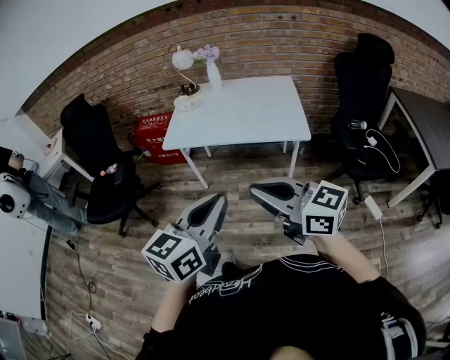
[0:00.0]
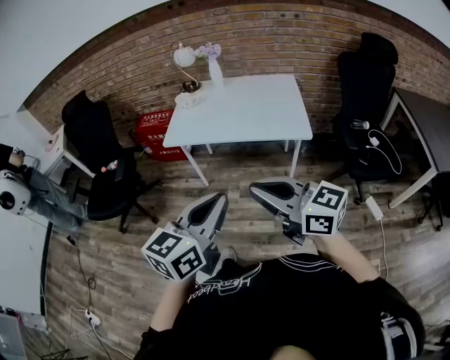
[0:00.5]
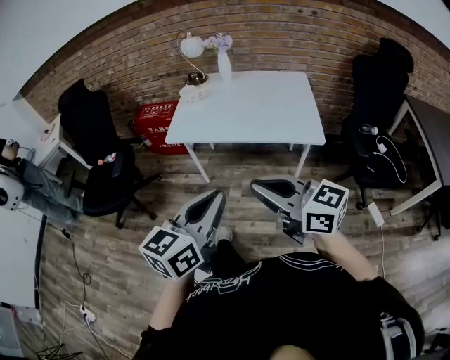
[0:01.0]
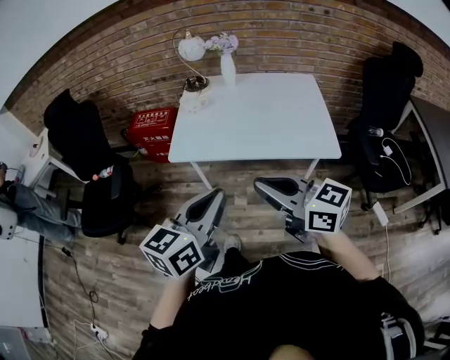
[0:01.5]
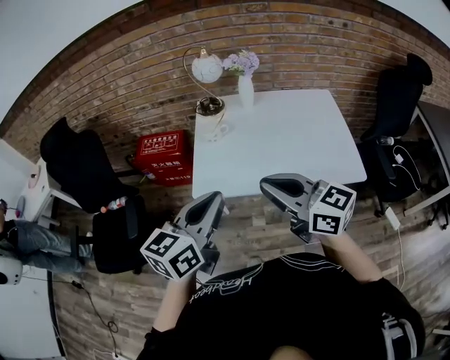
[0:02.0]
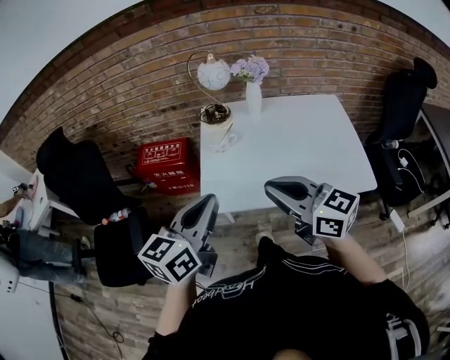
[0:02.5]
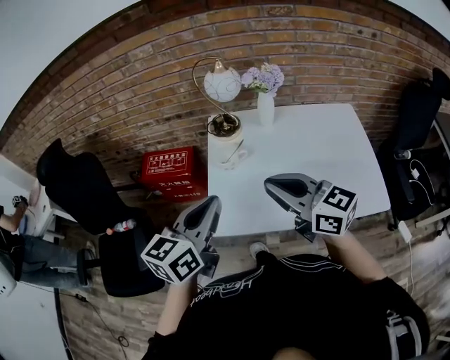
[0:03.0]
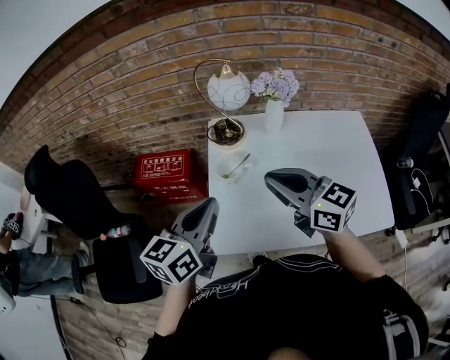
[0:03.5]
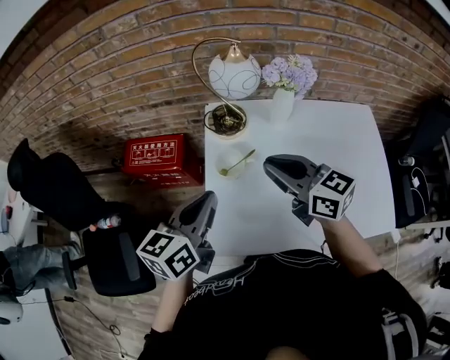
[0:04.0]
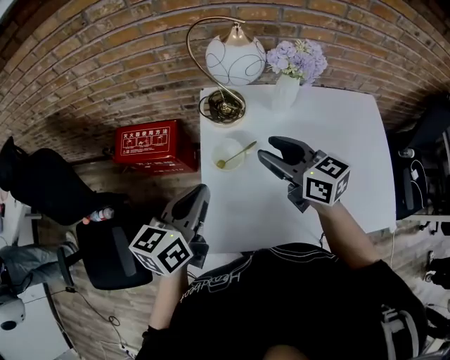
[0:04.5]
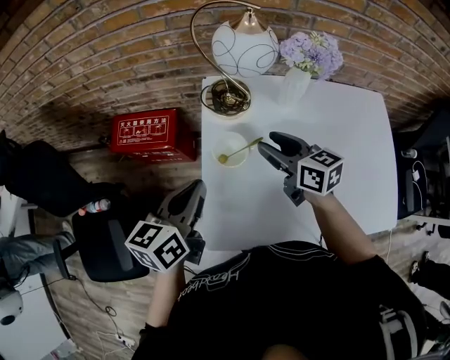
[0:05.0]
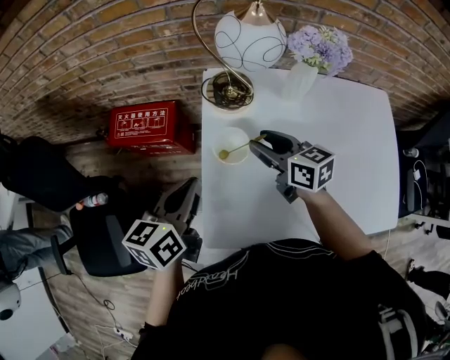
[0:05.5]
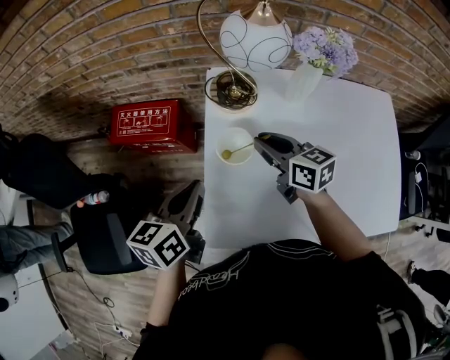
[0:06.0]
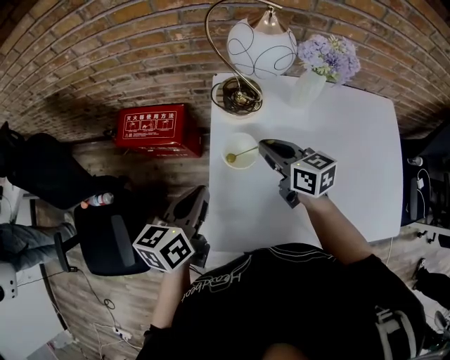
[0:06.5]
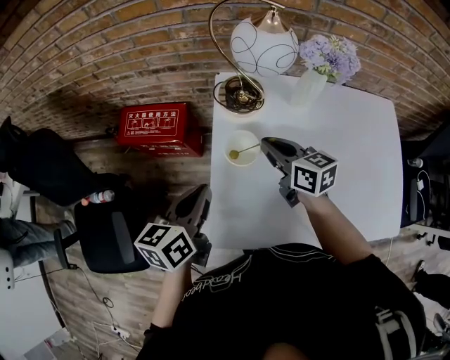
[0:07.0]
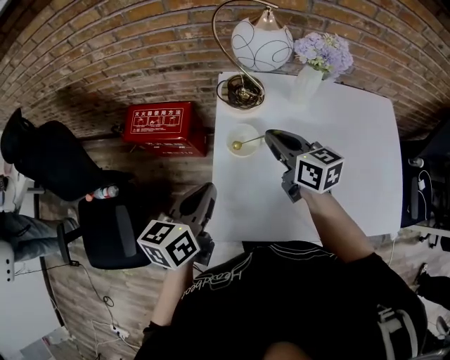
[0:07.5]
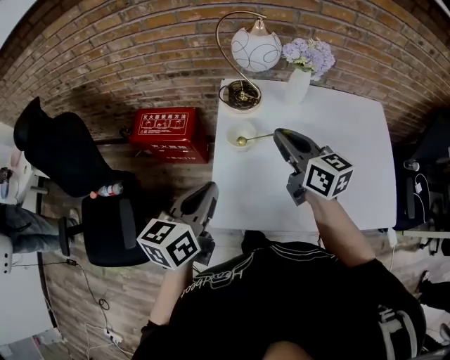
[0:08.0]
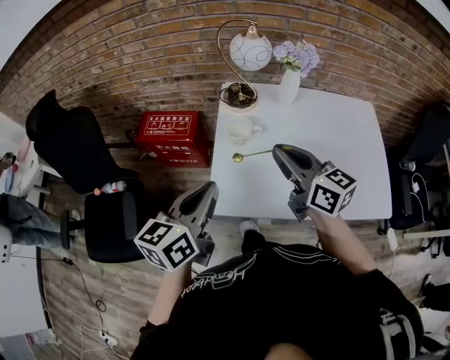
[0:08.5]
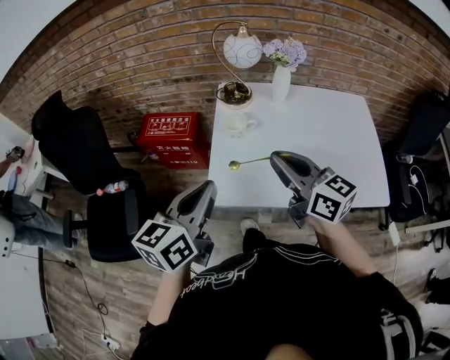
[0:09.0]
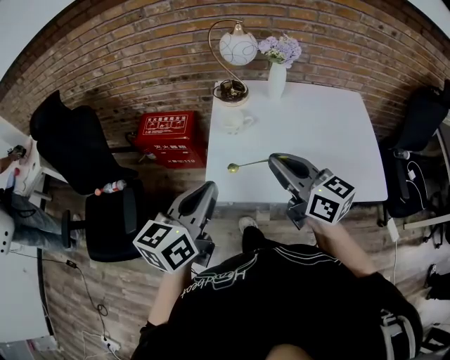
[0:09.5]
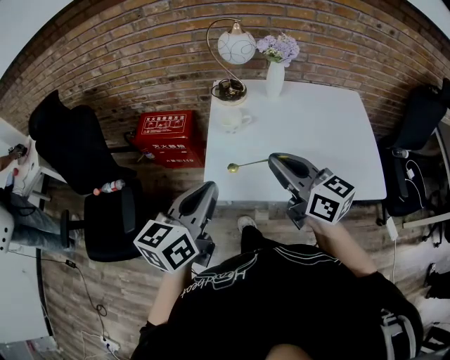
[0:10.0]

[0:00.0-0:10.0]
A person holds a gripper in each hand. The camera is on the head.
0:00.0 to 0:02.0: The two grippers travel together, forward, some 40 cm.
0:02.0 to 0:04.0: Both grippers move forward, roughly 35 cm.
0:04.0 to 0:06.0: The right gripper moves downward and forward, roughly 20 cm, and opens, then closes once more. Meanwhile the left gripper travels downward by roughly 10 cm.
0:06.0 to 0:08.0: The right gripper moves upward and backward, some 15 cm; the left gripper heads backward and upward, covering roughly 15 cm.
0:08.0 to 0:10.0: The left gripper goes some 15 cm backward and upward; the right gripper travels backward by roughly 20 cm.

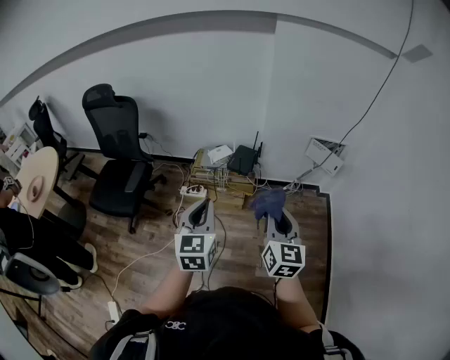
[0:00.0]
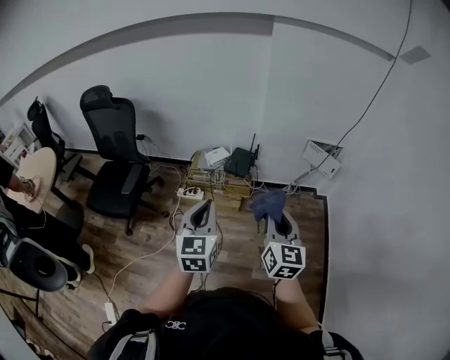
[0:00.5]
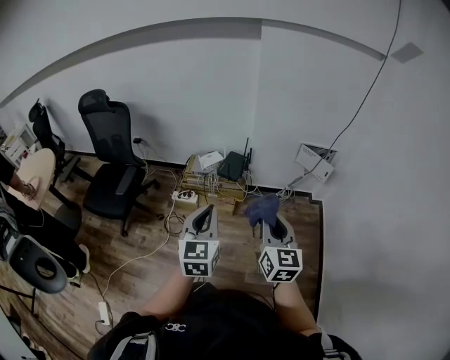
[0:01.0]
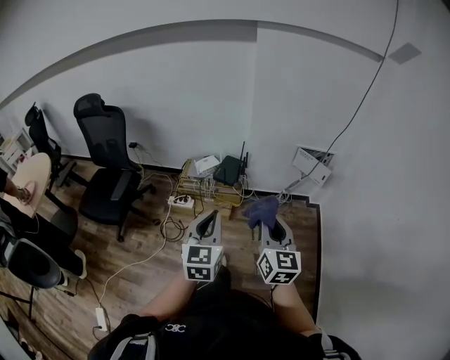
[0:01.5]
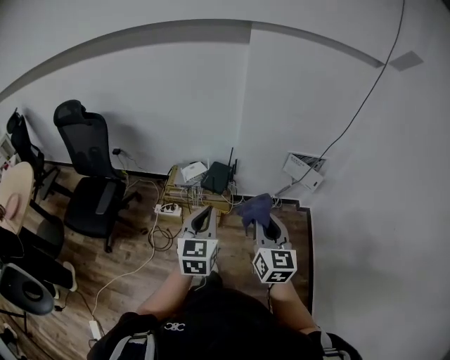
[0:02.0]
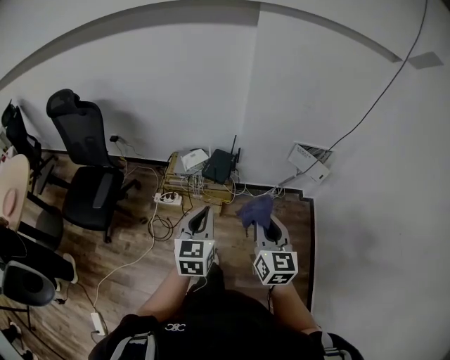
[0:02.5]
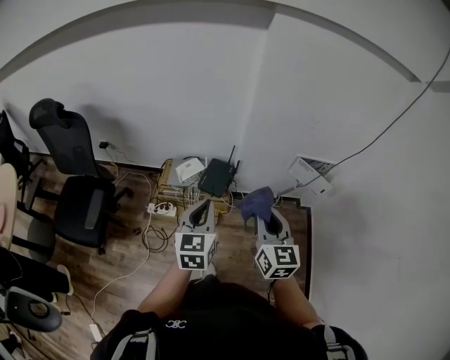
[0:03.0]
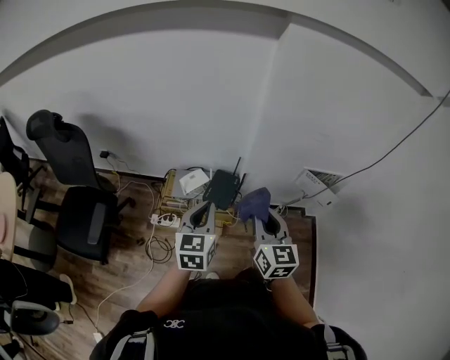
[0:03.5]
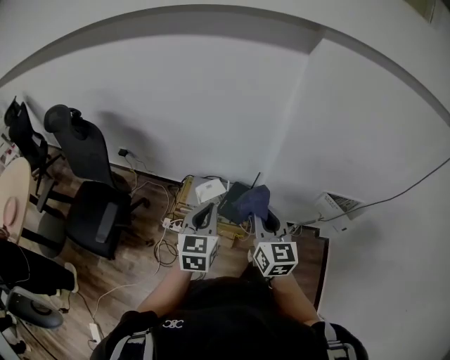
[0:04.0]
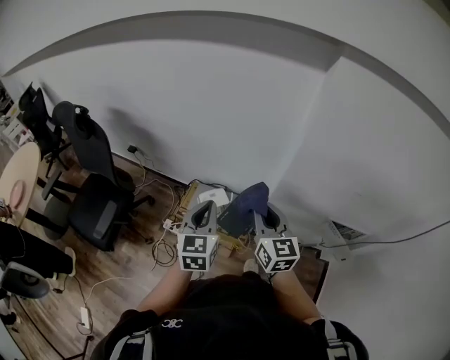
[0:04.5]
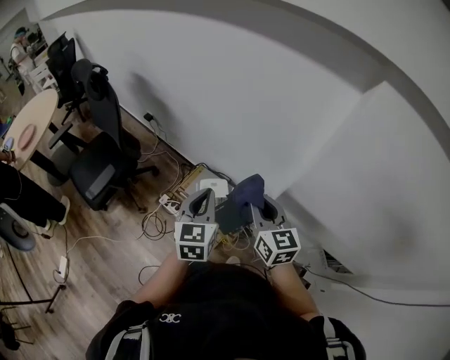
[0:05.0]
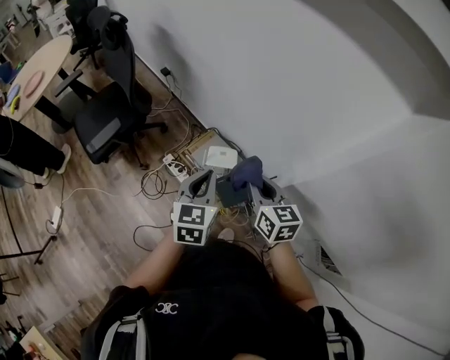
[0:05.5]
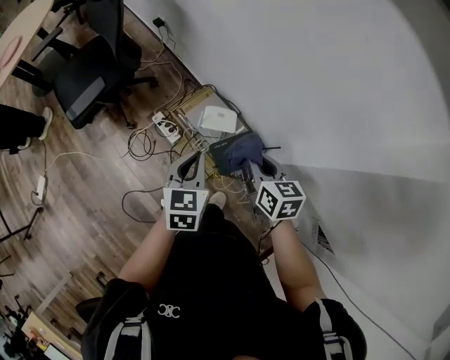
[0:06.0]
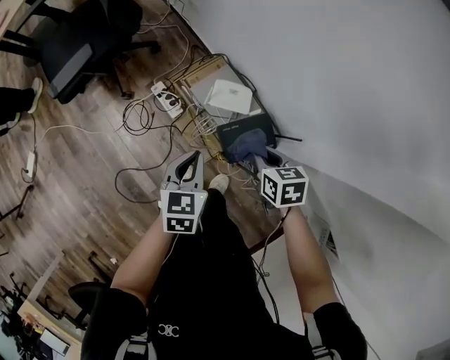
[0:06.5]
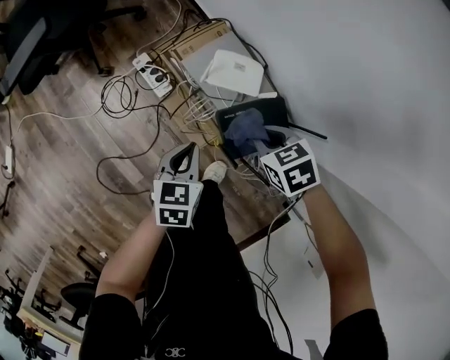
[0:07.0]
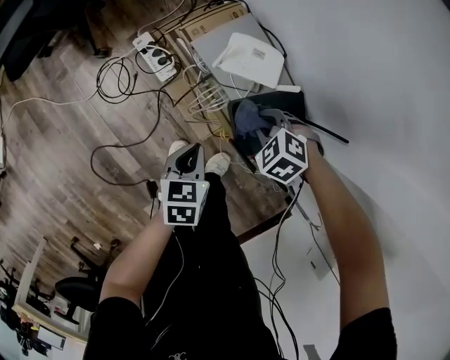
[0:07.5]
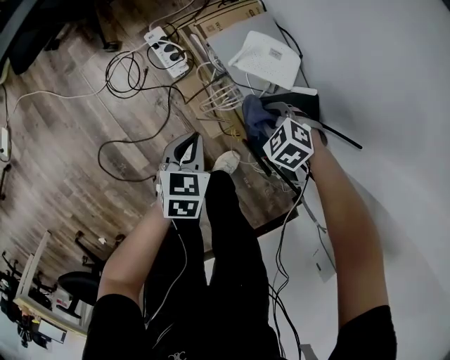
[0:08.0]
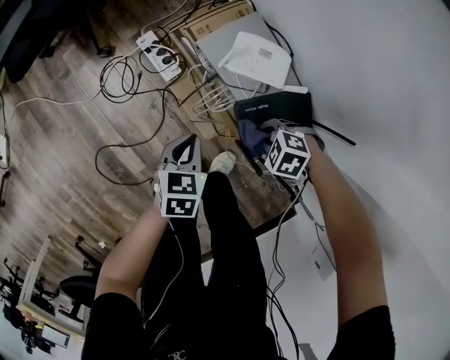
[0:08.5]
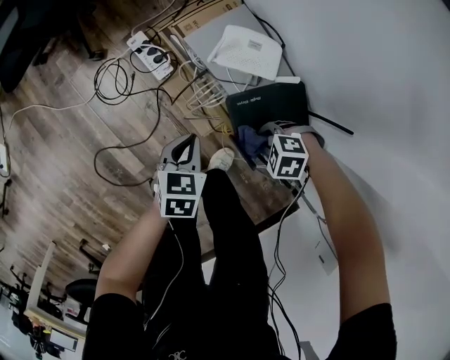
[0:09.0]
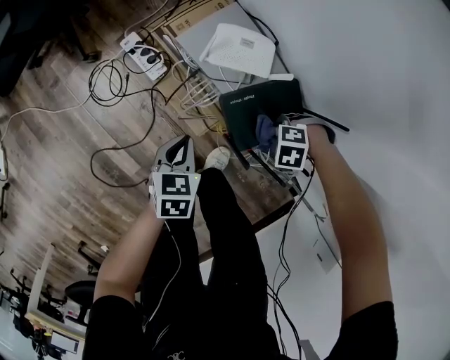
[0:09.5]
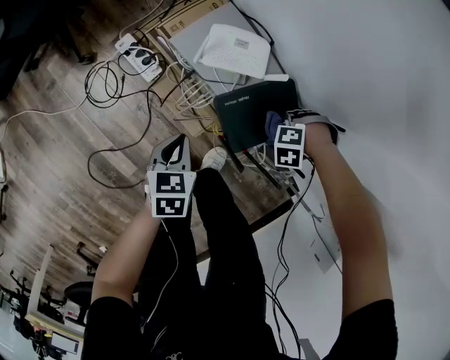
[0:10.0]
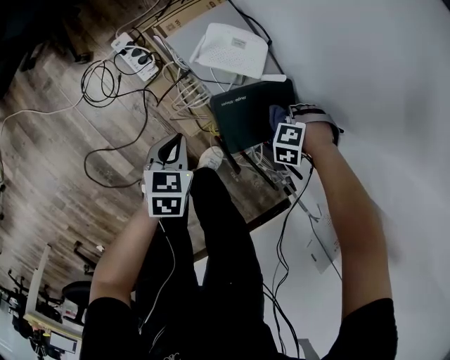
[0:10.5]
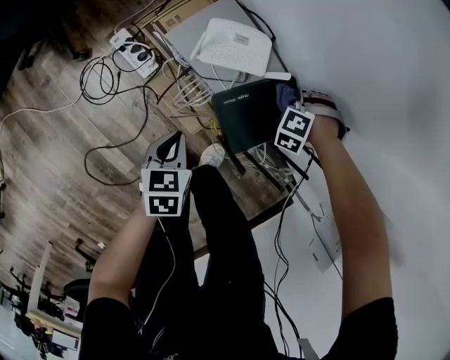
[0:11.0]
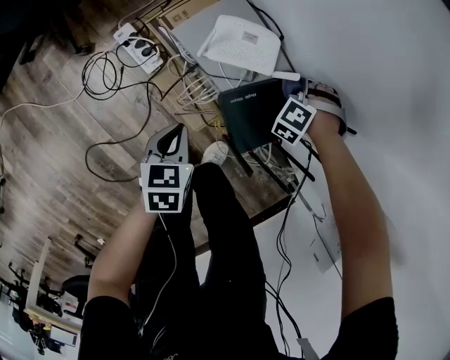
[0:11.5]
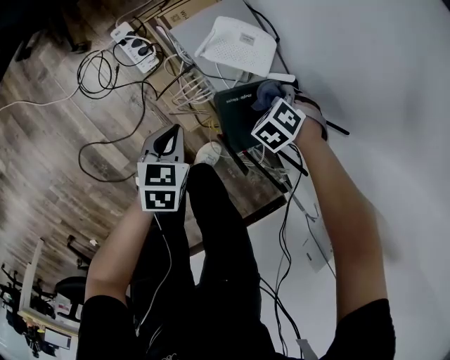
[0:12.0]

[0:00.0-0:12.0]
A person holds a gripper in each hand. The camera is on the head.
0:00.0 to 0:02.0: The left gripper moves to the right and forward, about 15 cm. Meanwhile the right gripper heads forward and to the right, covering some 10 cm.
0:02.0 to 0:04.0: The two grippers go approximately 35 cm forward.
0:04.0 to 0:06.0: The left gripper travels downward by roughly 15 cm, and rotates approximately 40 degrees, while the right gripper moves some 25 cm, and rotates about 50 degrees.
0:06.0 to 0:08.0: The grippers both shift downward by some 40 cm. The left gripper swivels approximately 20 degrees, while the right gripper points its fingers some 40 degrees further downward.
0:08.0 to 0:10.0: The right gripper changes place by some 20 cm, and changes its angle by about 40 degrees.
0:10.0 to 0:12.0: The right gripper shifts by about 10 cm, and swivels roughly 40 degrees.

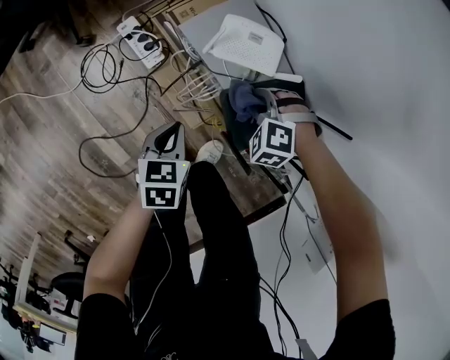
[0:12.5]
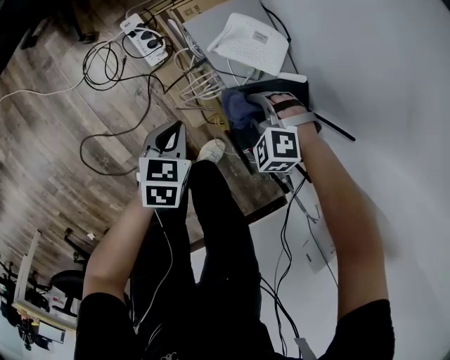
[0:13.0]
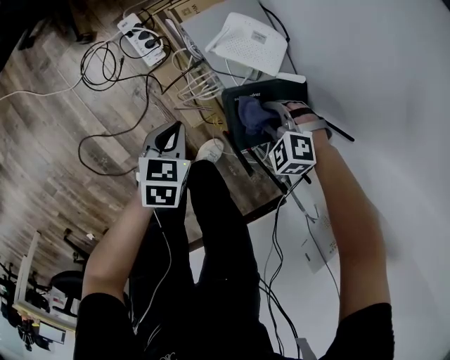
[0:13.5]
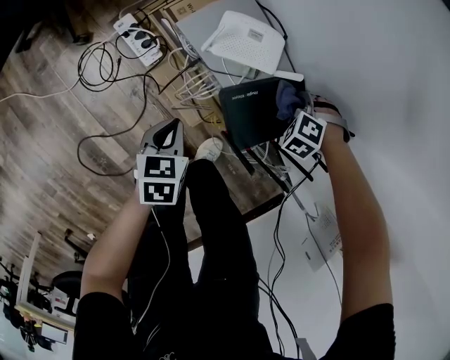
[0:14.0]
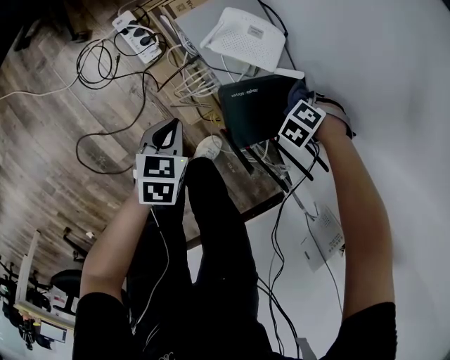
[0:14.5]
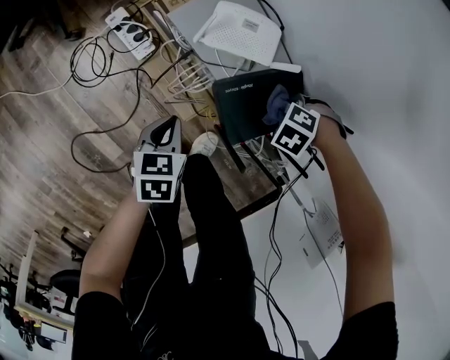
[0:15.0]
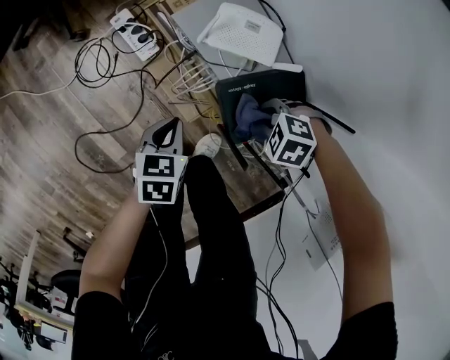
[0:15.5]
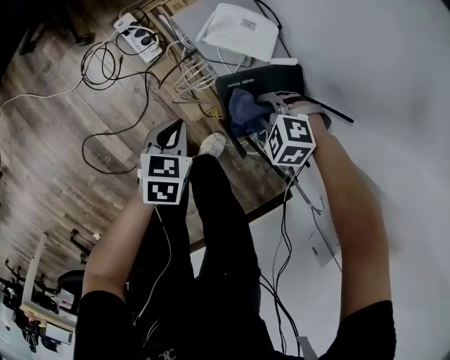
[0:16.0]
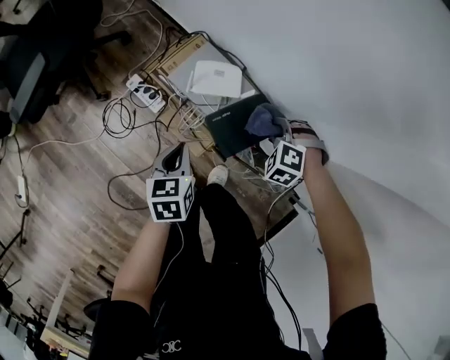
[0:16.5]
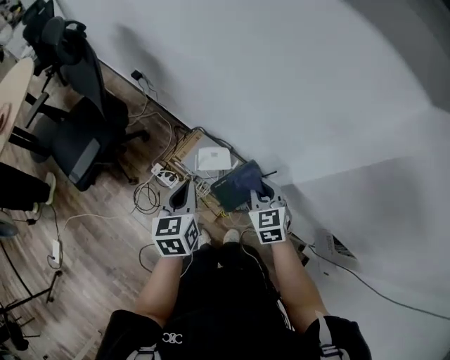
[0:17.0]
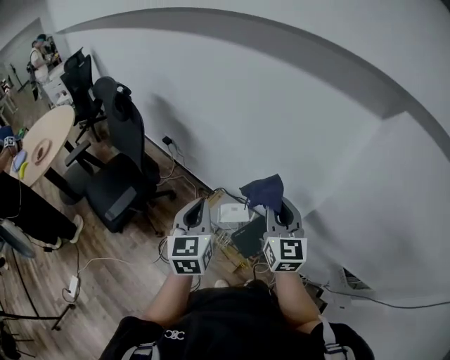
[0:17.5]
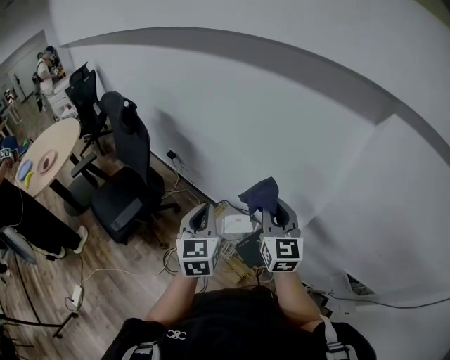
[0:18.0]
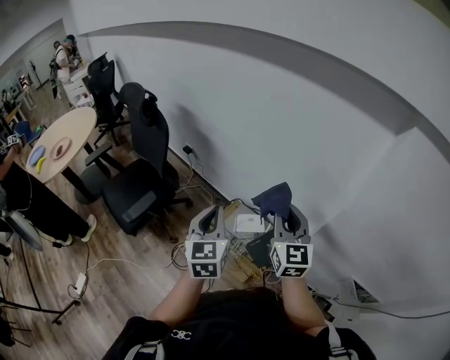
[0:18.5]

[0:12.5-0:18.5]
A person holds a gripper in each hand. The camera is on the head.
0:12.5 to 0:14.5: The right gripper moves some 20 cm, and changes its angle by approximately 40 degrees.
0:14.5 to 0:16.5: Both grippers move upward, roughly 20 cm. The right gripper rotates about 30 degrees.
0:16.5 to 0:18.5: Both grippers move upward, roughly 50 cm. The left gripper tips its fingers upward by some 40 degrees. Meanwhile the right gripper points its fingers some 70 degrees further upward.
